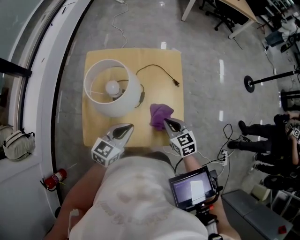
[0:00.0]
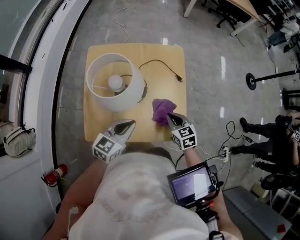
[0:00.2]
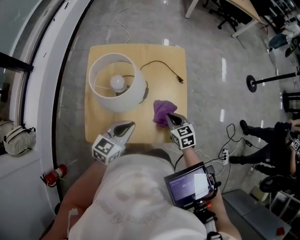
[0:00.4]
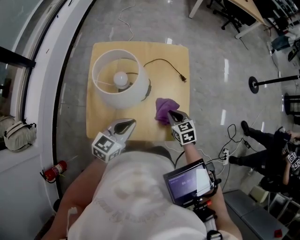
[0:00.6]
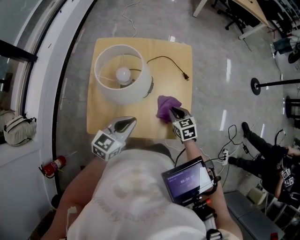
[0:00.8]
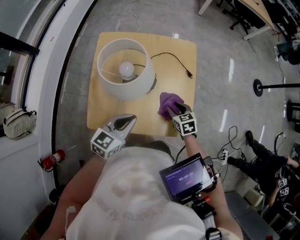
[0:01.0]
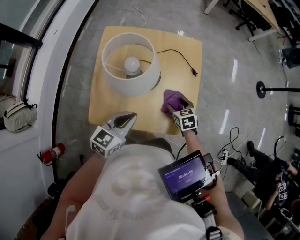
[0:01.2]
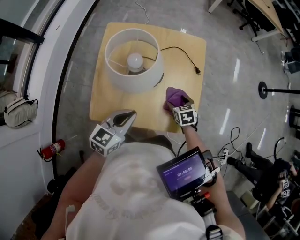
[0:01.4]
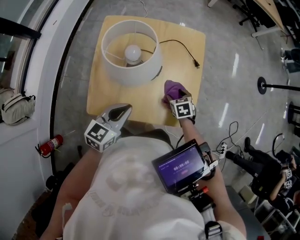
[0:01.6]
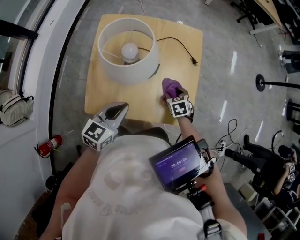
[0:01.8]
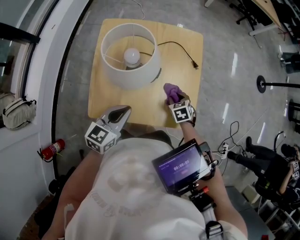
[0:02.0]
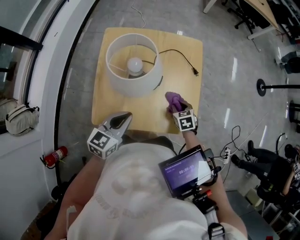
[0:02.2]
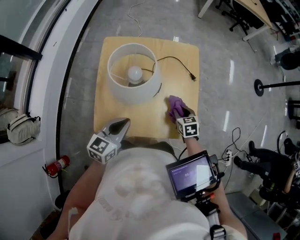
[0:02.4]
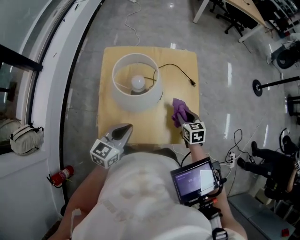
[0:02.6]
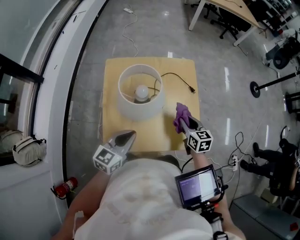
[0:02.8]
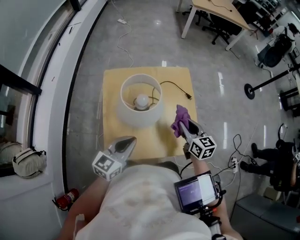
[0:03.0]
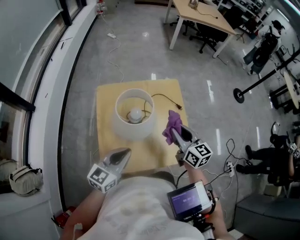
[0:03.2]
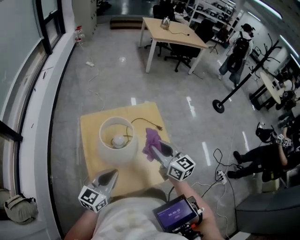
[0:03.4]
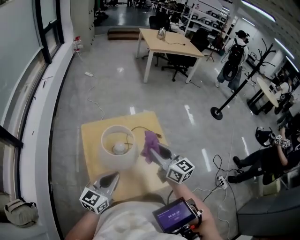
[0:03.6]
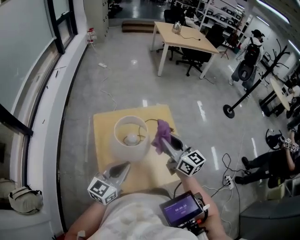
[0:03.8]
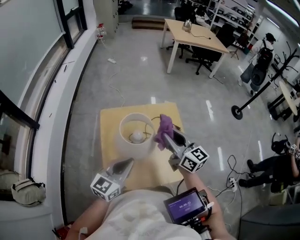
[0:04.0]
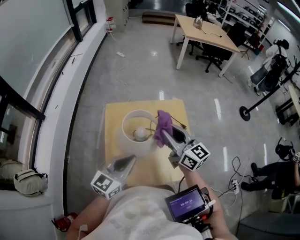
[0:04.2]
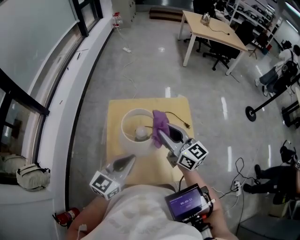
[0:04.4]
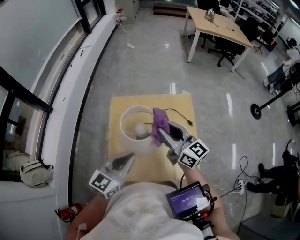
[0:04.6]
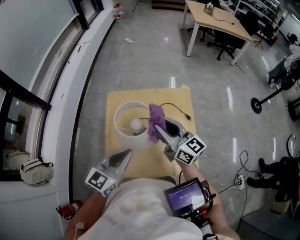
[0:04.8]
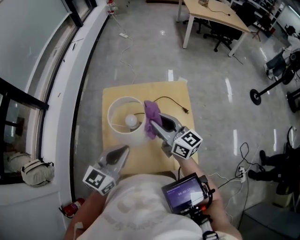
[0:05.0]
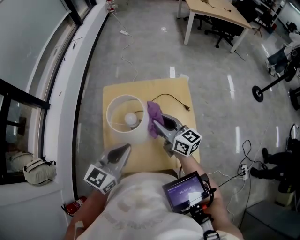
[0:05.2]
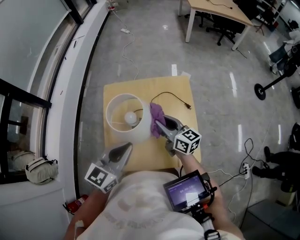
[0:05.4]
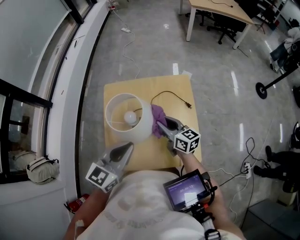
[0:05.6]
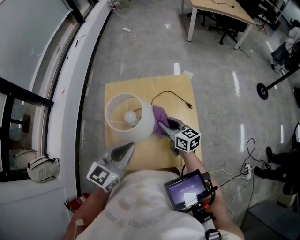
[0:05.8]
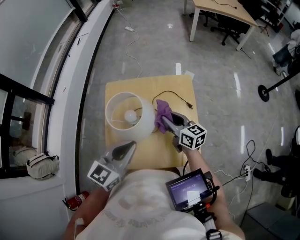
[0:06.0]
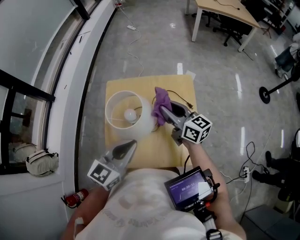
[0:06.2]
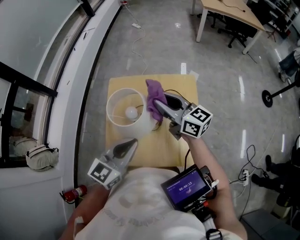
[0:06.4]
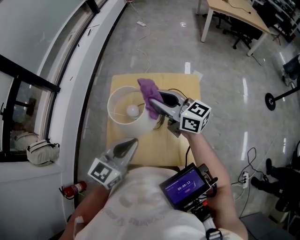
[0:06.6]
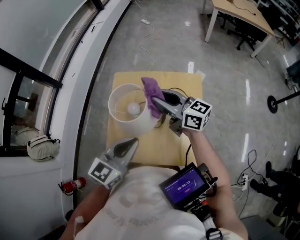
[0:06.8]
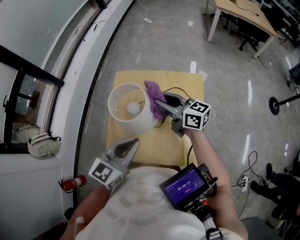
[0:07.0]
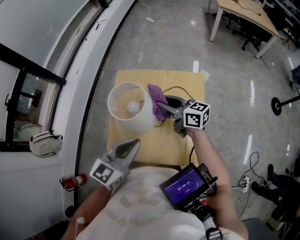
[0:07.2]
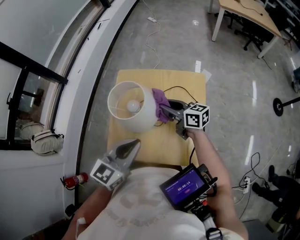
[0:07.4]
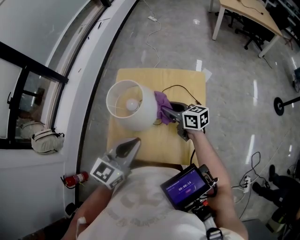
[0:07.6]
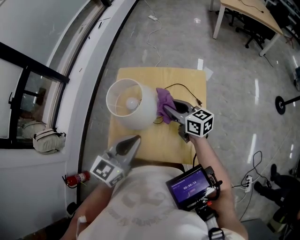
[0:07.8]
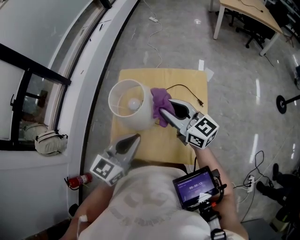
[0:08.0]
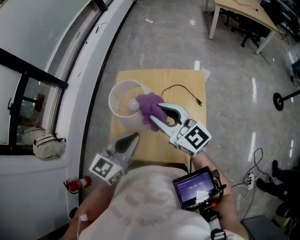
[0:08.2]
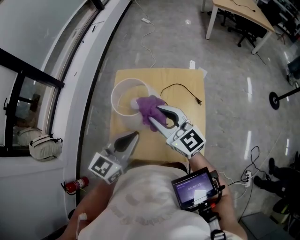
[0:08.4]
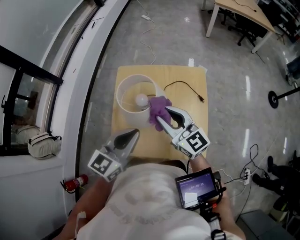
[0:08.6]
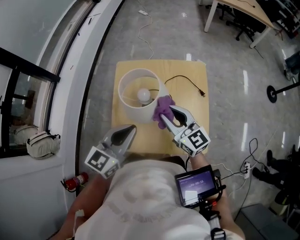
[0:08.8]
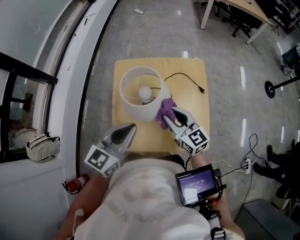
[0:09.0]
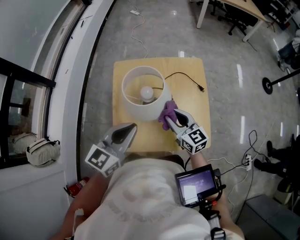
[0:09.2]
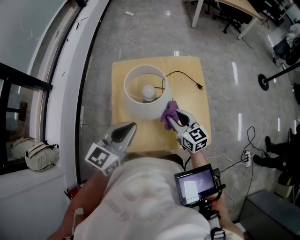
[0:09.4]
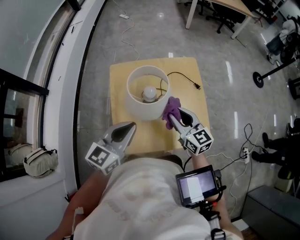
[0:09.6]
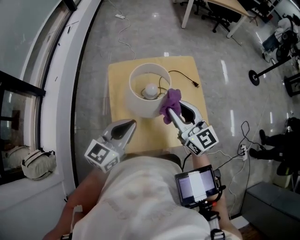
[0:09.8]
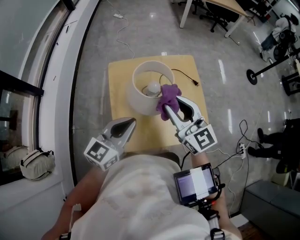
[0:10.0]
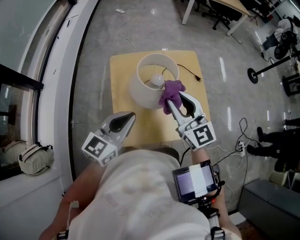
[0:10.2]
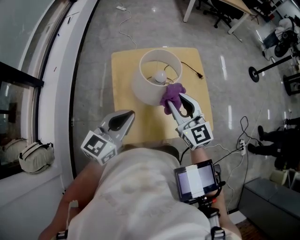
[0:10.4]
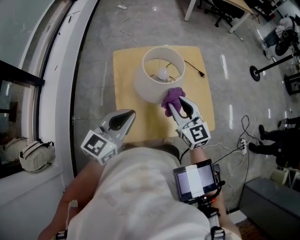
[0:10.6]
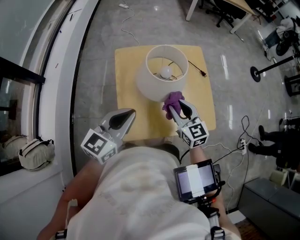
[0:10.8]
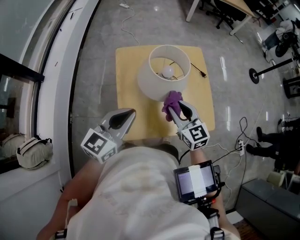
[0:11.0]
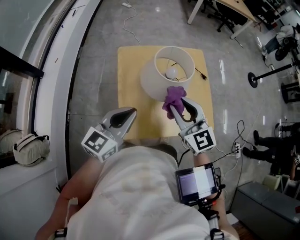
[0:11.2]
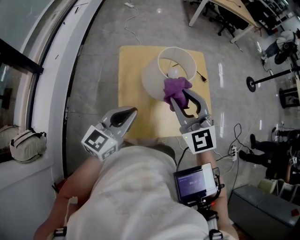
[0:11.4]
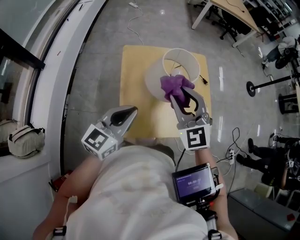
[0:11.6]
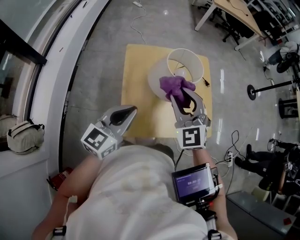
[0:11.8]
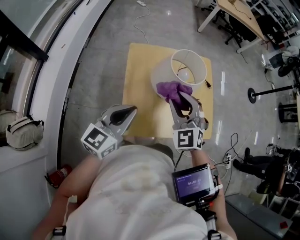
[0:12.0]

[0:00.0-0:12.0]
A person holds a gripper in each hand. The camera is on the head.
0:00.0 to 0:01.6: The left gripper moves to the left, about 5 cm. Meanwhile the right gripper travels downward by roughly 15 cm, rotates approximately 30 degrees, and opens.
0:01.6 to 0:03.0: The right gripper travels upward by about 20 cm, tilts its fingers approximately 40 degrees upward, and closes its fingers. Meanwhile the left gripper shifts about 10 cm upward and to the left.
0:03.0 to 0:04.4: The left gripper goes approximately 10 cm upward. The right gripper moves upward and to the left, roughly 20 cm, and turns by about 30 degrees.
0:04.4 to 0:06.0: The left gripper travels to the right by roughly 5 cm. Meanwhile the right gripper goes approximately 15 cm downward and to the right.
0:06.0 to 0:07.6: The right gripper reaches approximately 15 cm upward, then returns, and turns by some 20 degrees.
0:07.6 to 0:09.0: The left gripper travels to the left by approximately 10 cm. Meanwhile the right gripper shifts some 10 cm backward and to the left, travels upward and back again, some 15 cm each way, and rotates some 30 degrees.
0:09.0 to 0:10.4: The left gripper heads to the left, covering approximately 10 cm, while the right gripper moves up and down over about 15 cm, changing direction 2 times, and changes its angle by about 20 degrees.
0:10.4 to 0:12.0: The left gripper goes about 5 cm to the left; the right gripper moves up and down over approximately 15 cm, changing direction 2 times, and turns by approximately 40 degrees.

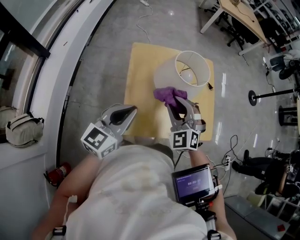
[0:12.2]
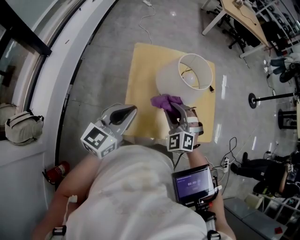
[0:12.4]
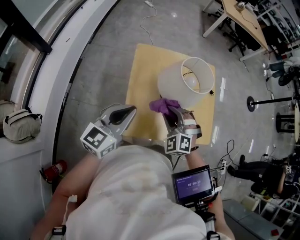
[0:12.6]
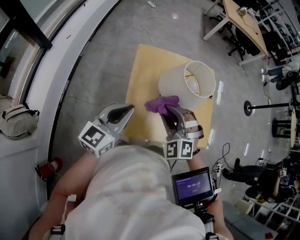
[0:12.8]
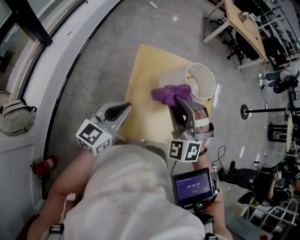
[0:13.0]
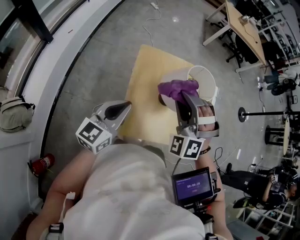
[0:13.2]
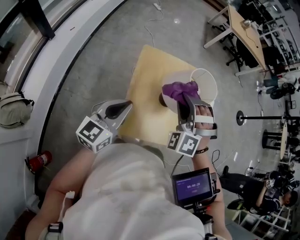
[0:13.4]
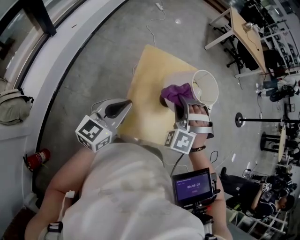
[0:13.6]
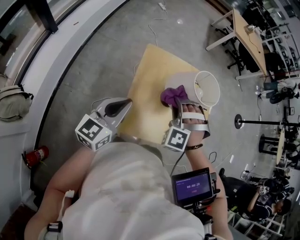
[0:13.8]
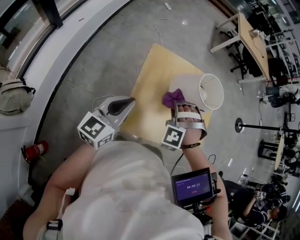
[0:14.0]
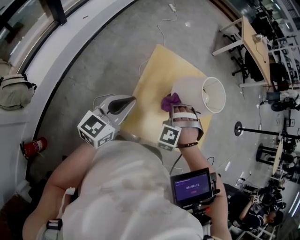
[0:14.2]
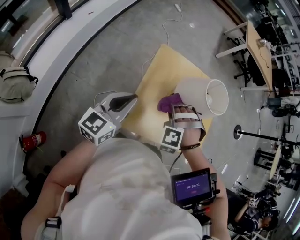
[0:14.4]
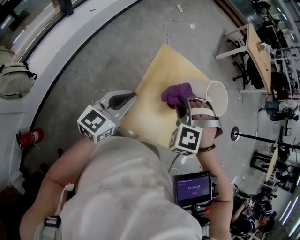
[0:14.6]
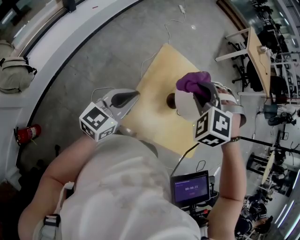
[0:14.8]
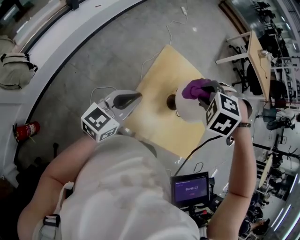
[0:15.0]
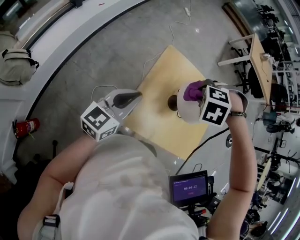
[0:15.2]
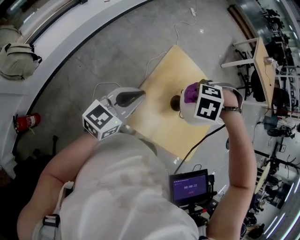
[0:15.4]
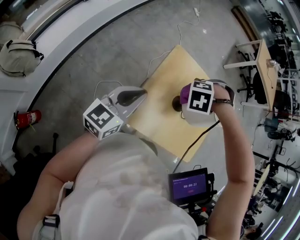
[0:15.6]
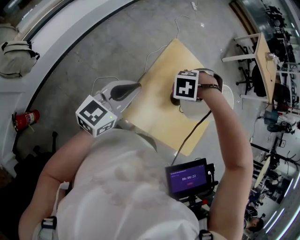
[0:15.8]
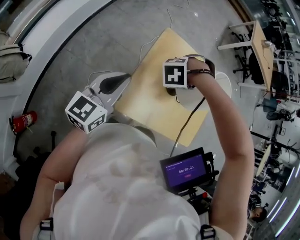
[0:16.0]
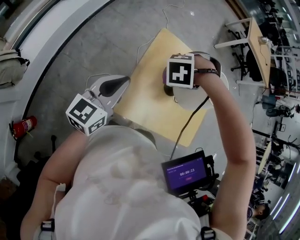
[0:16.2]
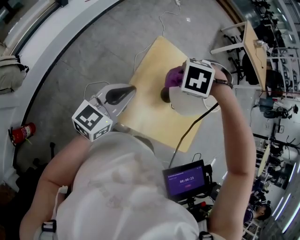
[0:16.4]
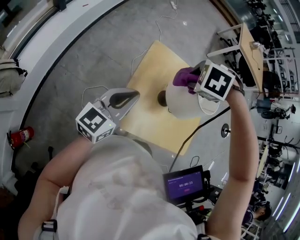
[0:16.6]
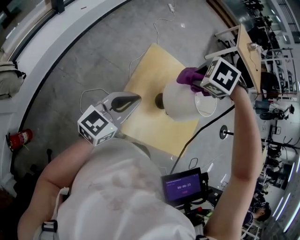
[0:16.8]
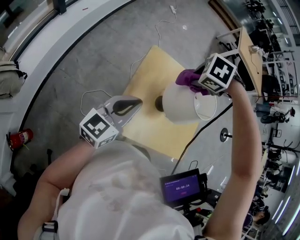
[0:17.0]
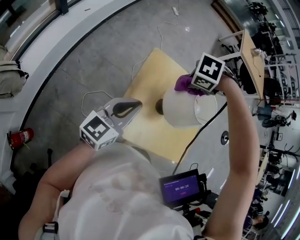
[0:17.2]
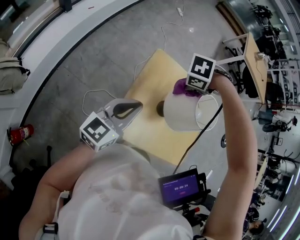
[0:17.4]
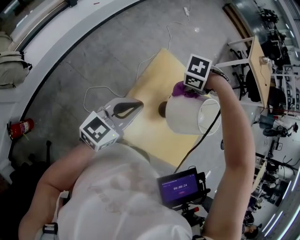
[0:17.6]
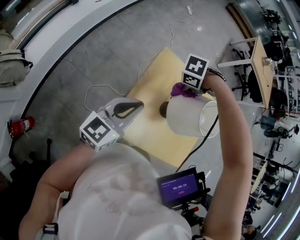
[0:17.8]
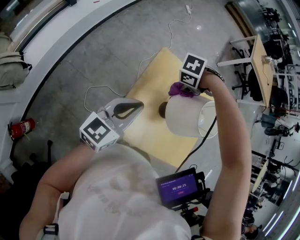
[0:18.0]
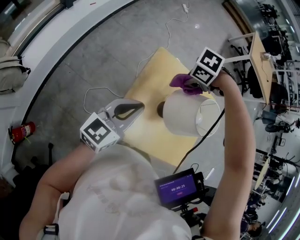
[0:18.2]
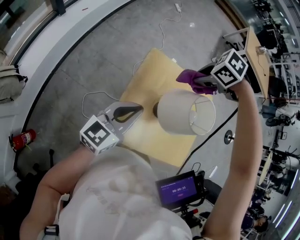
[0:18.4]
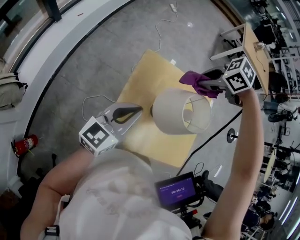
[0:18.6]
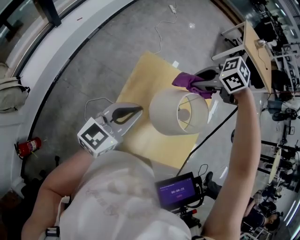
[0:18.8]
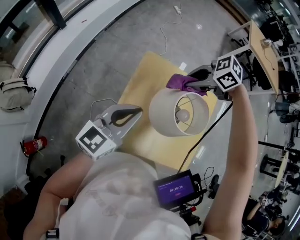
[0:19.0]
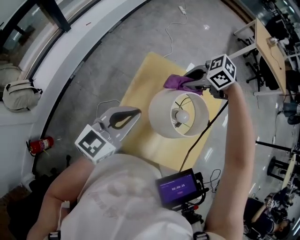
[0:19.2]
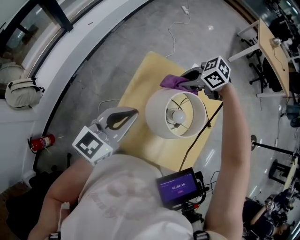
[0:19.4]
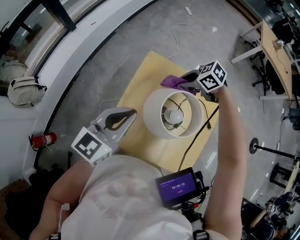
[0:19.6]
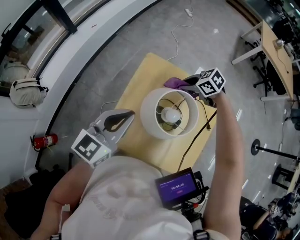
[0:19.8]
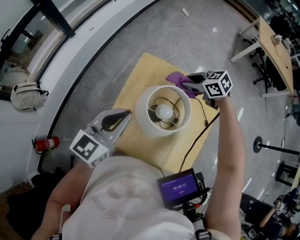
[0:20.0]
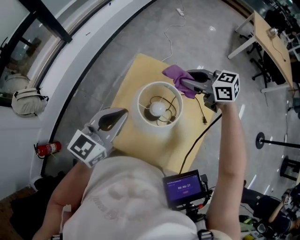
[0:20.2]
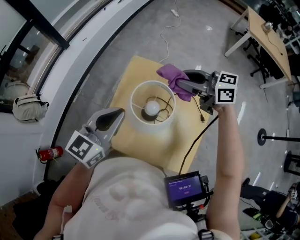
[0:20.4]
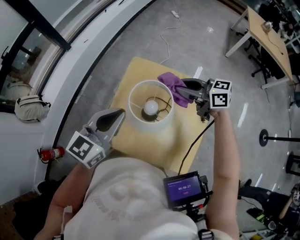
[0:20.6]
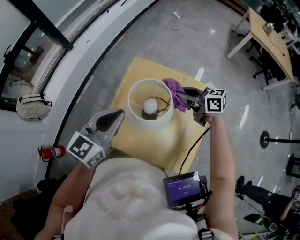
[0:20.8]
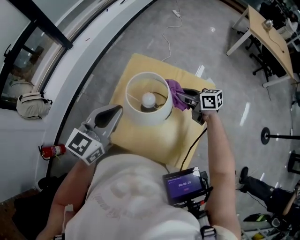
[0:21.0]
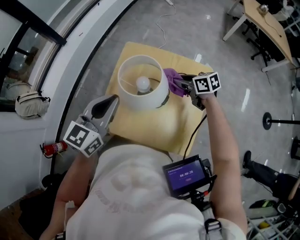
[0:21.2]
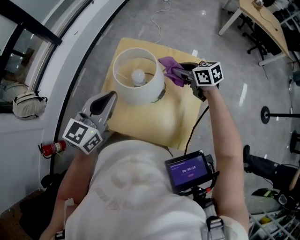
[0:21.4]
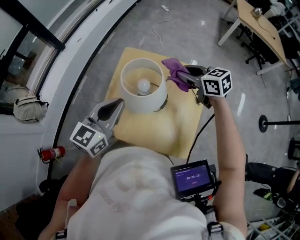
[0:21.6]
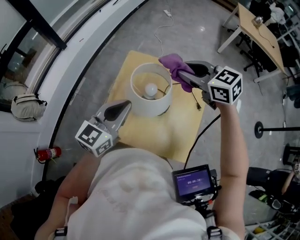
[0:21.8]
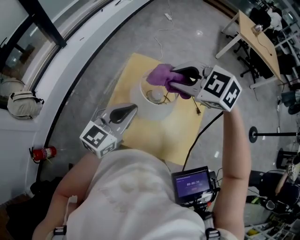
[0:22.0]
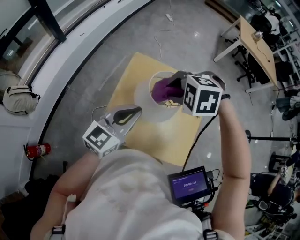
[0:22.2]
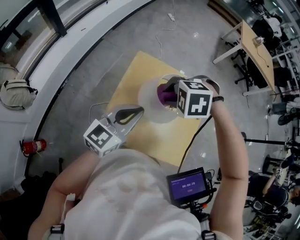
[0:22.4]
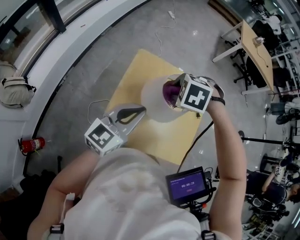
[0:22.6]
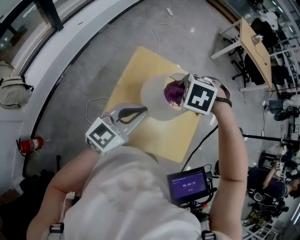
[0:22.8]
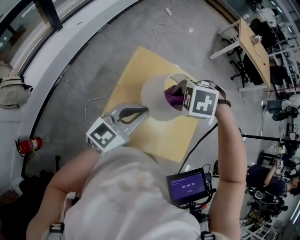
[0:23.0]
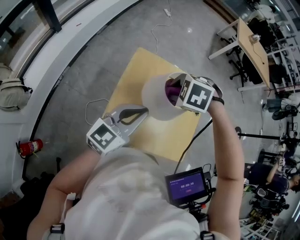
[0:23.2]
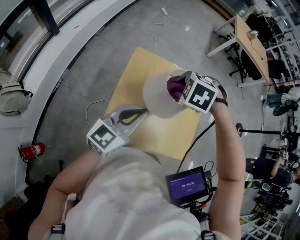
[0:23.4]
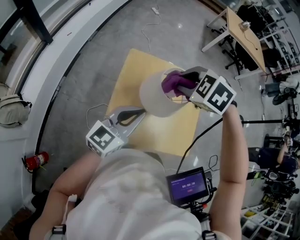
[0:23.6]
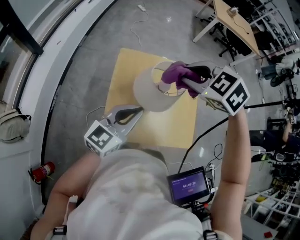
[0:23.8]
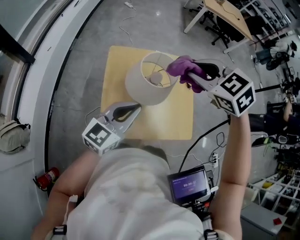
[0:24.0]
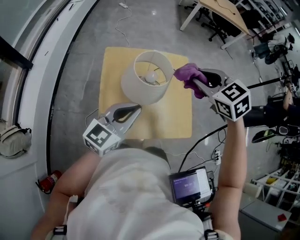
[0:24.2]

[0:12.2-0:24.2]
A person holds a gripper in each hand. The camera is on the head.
0:12.2 to 0:13.8: The right gripper goes up and down, approximately 15 cm each way, reversing 2 times, and rolls counterclockwise, seen from behind, by some 40 degrees, while the left gripper is displaced to the left by about 5 cm.
0:13.8 to 0:15.2: The right gripper goes up and down, some 15 cm each way, reversing 2 times, and tilts its fingers approximately 30 degrees downward.
0:15.2 to 0:16.6: The right gripper travels downward and back again, some 10 cm each way.
0:16.6 to 0:18.2: The right gripper moves roughly 15 cm, and swivels some 20 degrees.
0:18.2 to 0:19.8: The right gripper ends up roughly 15 cm from where it was, and changes its angle by roughly 40 degrees; the left gripper changes place by some 10 cm.
0:19.8 to 0:21.2: The right gripper moves about 20 cm upward and comes back, and changes its angle by roughly 40 degrees. The left gripper moves roughly 5 cm.
0:21.2 to 0:22.6: The right gripper moves approximately 20 cm, and points its fingers roughly 50 degrees further downward.
0:22.6 to 0:24.2: The right gripper shifts by roughly 20 cm, and tilts its fingers some 40 degrees upward. Meanwhile the left gripper ends up roughly 5 cm from where it was.
